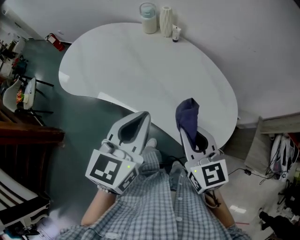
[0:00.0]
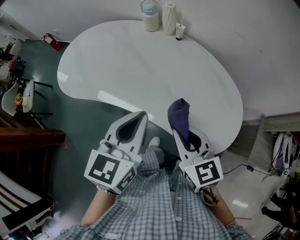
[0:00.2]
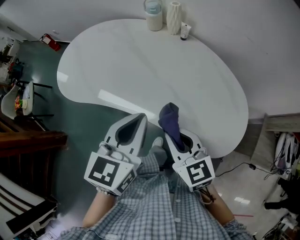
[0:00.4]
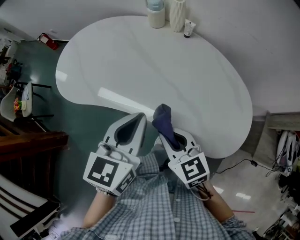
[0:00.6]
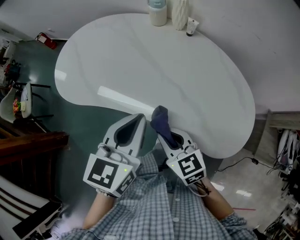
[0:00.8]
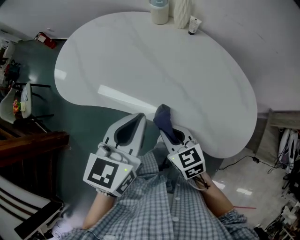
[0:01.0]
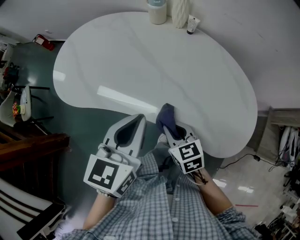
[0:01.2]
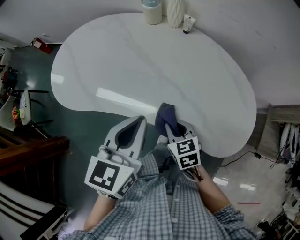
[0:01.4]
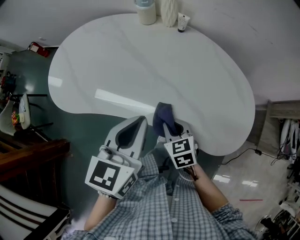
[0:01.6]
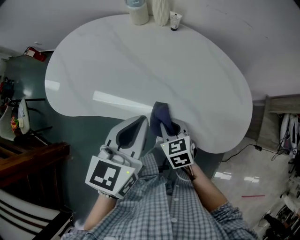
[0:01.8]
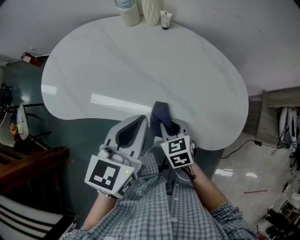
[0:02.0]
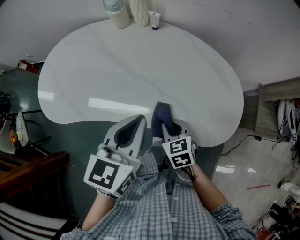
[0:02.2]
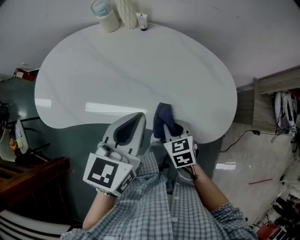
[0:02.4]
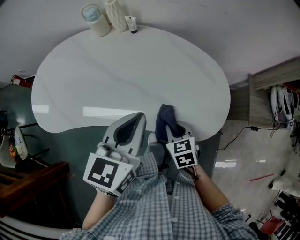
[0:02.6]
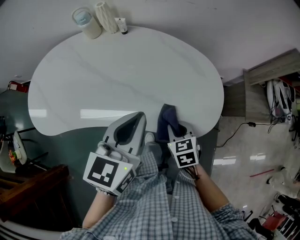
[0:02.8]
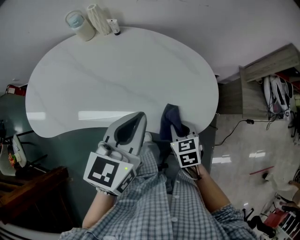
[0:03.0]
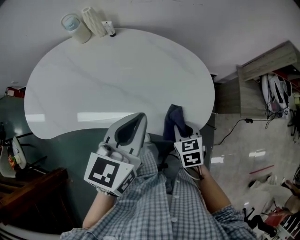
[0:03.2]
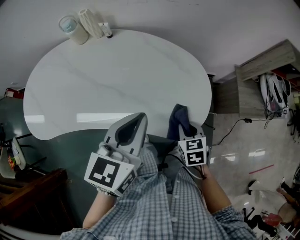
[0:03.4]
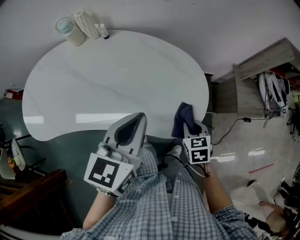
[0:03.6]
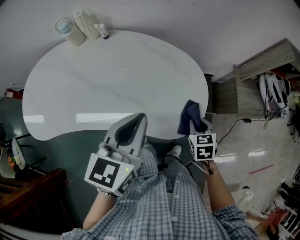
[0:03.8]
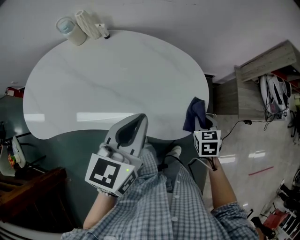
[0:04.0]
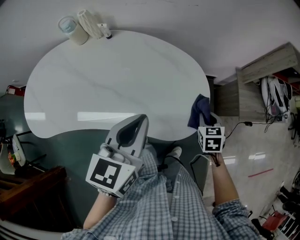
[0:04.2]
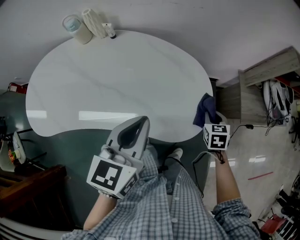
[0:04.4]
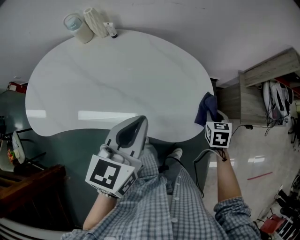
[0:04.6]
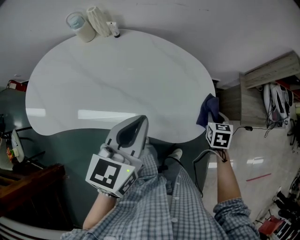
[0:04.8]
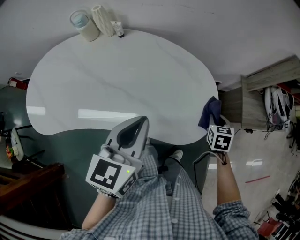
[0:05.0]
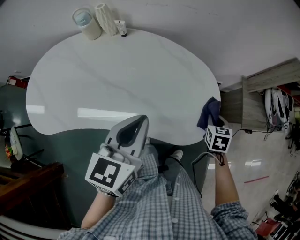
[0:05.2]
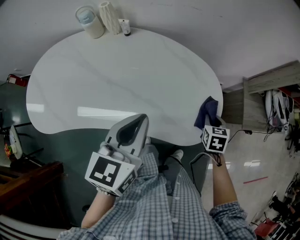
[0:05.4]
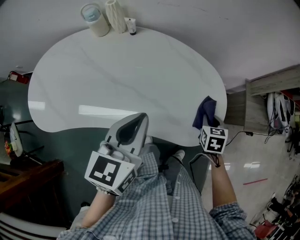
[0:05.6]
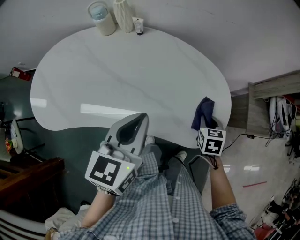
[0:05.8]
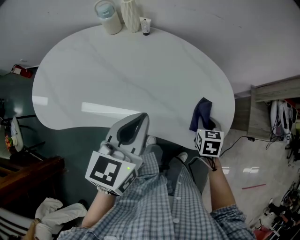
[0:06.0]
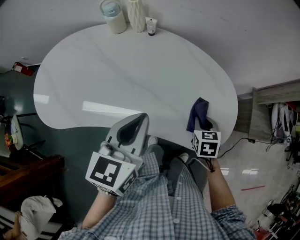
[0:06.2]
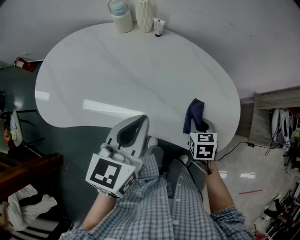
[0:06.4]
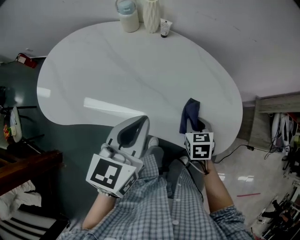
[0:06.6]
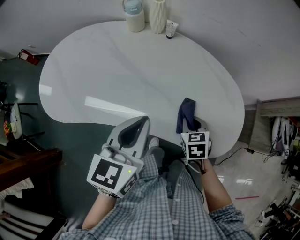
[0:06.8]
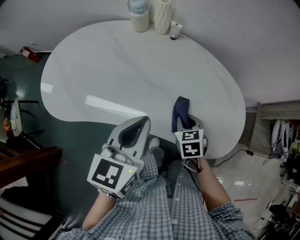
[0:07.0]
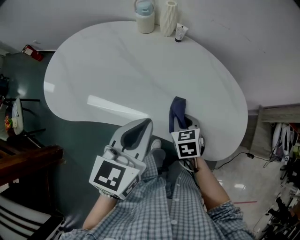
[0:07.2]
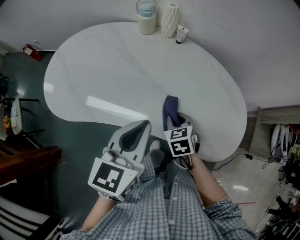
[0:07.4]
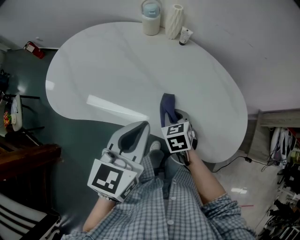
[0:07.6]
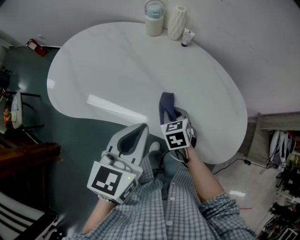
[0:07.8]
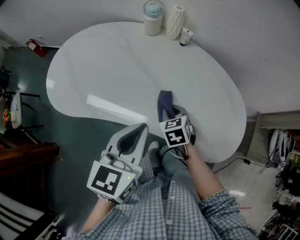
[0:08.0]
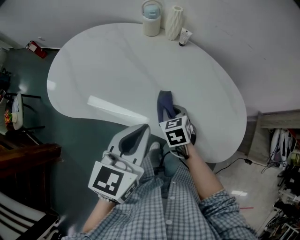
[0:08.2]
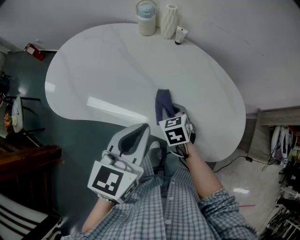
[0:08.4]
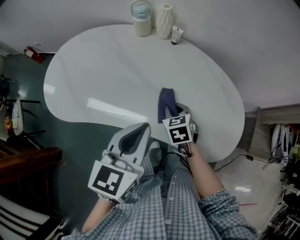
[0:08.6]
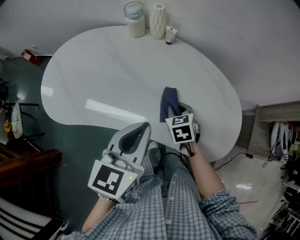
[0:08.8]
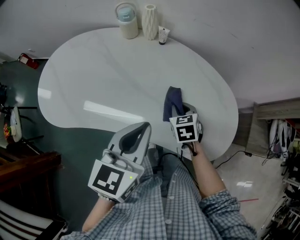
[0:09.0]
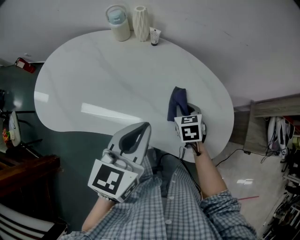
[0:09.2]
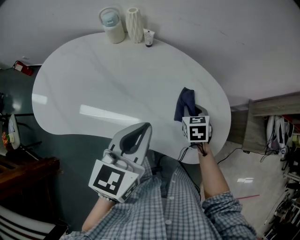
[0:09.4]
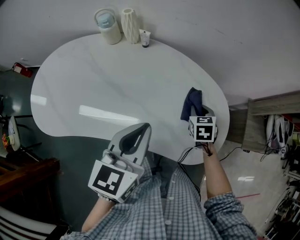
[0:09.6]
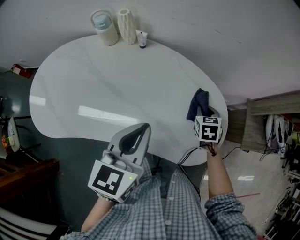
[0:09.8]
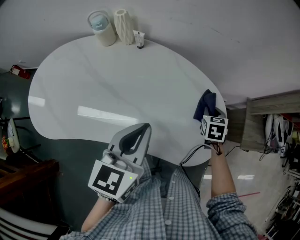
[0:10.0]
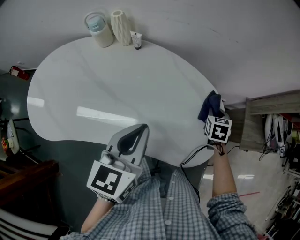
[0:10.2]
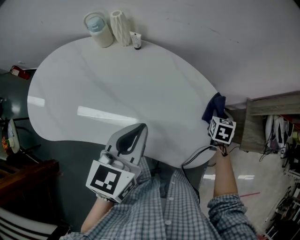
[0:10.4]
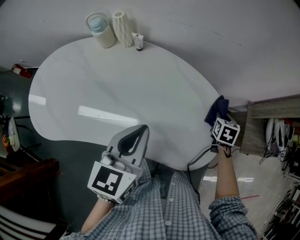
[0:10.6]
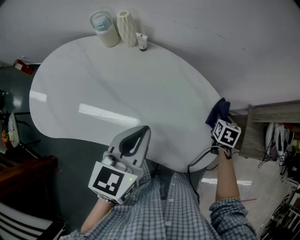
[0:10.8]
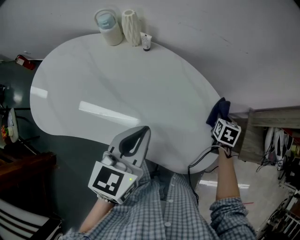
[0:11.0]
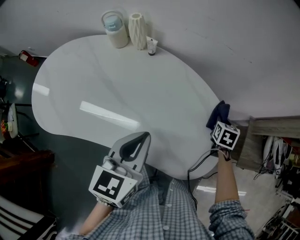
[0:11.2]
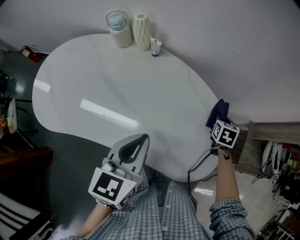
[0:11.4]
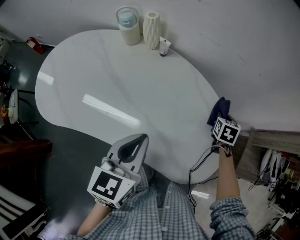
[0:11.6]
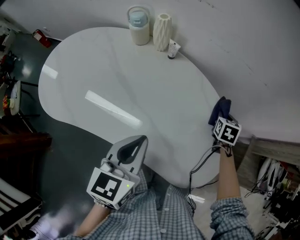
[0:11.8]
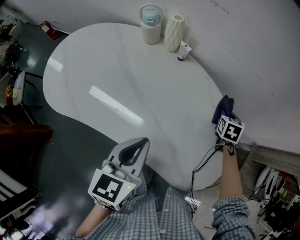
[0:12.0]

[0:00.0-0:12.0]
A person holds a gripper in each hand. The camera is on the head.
0:00.0 to 0:01.6: The left gripper travels forward, to the left and downward by roughly 15 cm. The right gripper travels downward, to the left and forward by approximately 25 cm, and swivels roughly 30 degrees.
0:01.6 to 0:03.0: Both grippers travel together to the right, approximately 20 cm. The right gripper changes its angle by some 20 degrees.
0:03.0 to 0:04.4: The right gripper heads to the right and forward, covering approximately 20 cm.
0:04.4 to 0:06.0: The two grippers go approximately 15 cm to the left.
0:06.0 to 0:07.6: The right gripper travels to the left by about 25 cm, and turns by about 30 degrees. The left gripper shifts approximately 10 cm to the left.
0:07.6 to 0:09.0: Both grippers travel together to the right, about 10 cm.
0:09.0 to 0:10.4: The left gripper moves forward and to the right, about 10 cm, while the right gripper heads to the right, covering approximately 30 cm, and rotates some 30 degrees.
0:10.4 to 0:12.0: The right gripper moves to the left and forward, some 15 cm. Meanwhile the left gripper moves some 5 cm.

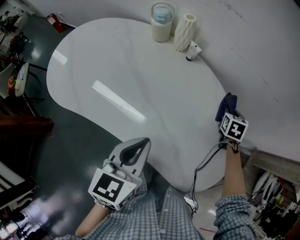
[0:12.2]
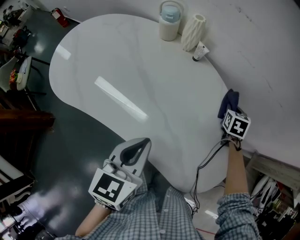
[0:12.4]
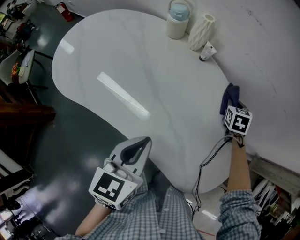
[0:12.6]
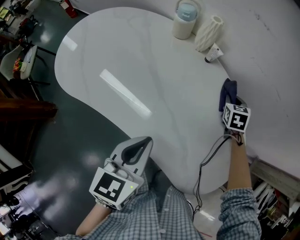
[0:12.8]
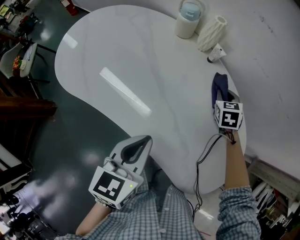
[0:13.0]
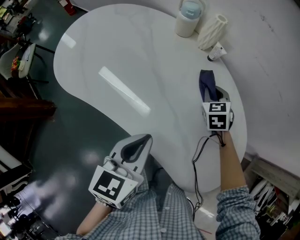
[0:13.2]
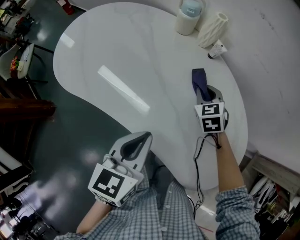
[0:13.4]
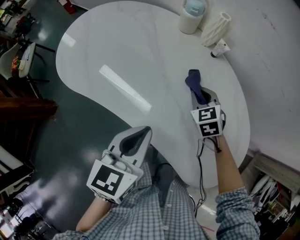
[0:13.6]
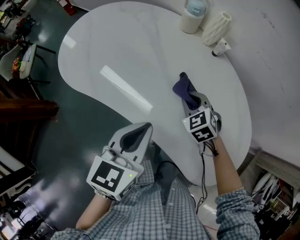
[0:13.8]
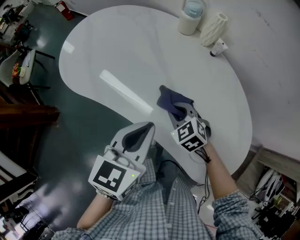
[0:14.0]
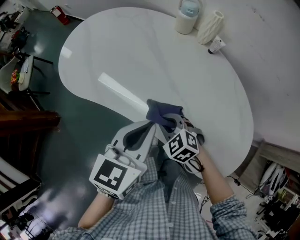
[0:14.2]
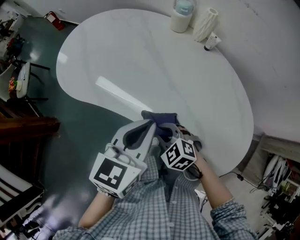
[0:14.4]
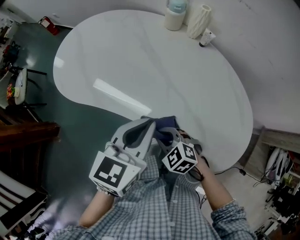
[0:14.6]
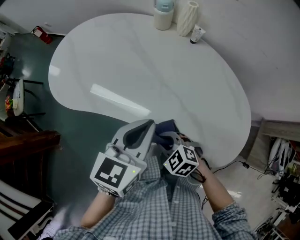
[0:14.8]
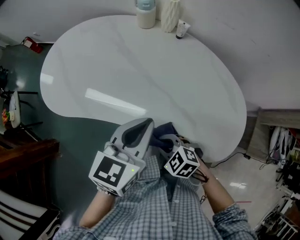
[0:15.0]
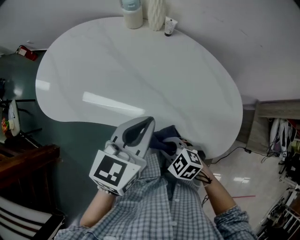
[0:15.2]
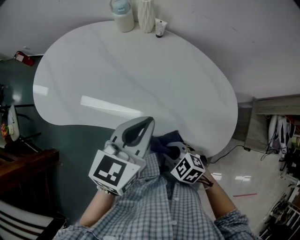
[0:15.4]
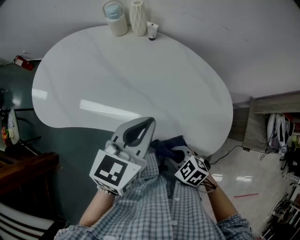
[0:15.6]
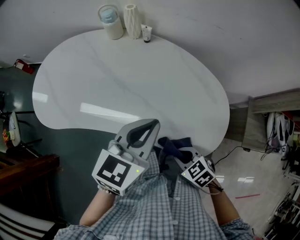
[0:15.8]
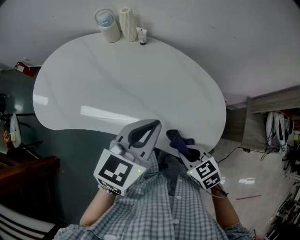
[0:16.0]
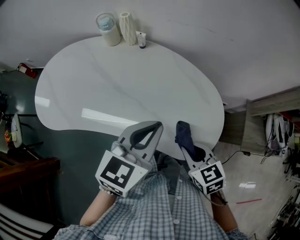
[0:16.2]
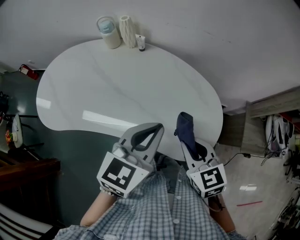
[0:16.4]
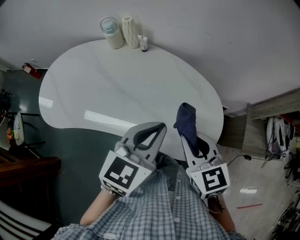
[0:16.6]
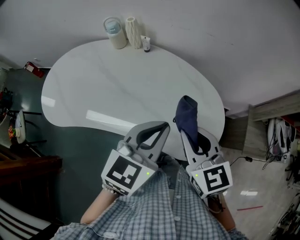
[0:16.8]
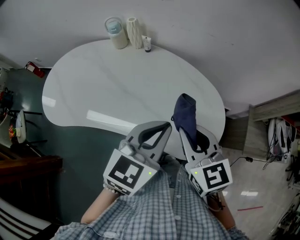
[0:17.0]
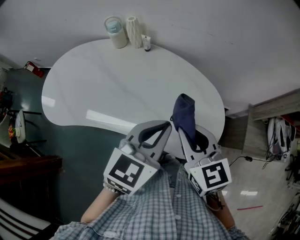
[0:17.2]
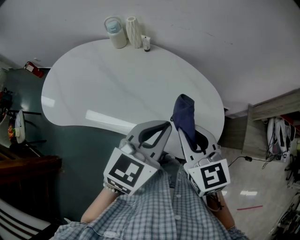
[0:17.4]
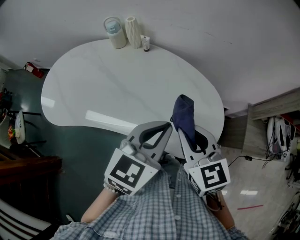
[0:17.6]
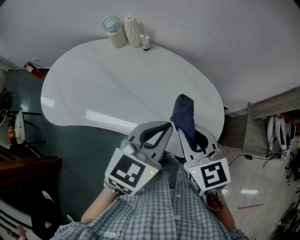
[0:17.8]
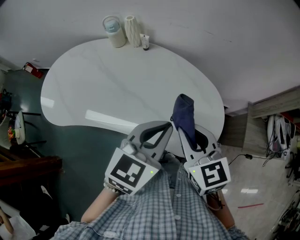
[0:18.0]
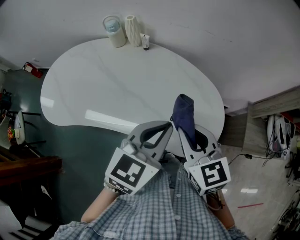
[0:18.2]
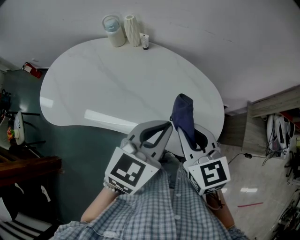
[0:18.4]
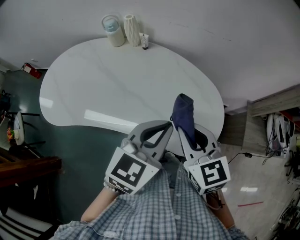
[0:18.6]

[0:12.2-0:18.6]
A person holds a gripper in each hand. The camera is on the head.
0:12.2 to 0:13.8: The right gripper ends up roughly 35 cm from where it was, and turns by approximately 60 degrees. Meanwhile the left gripper changes place by roughly 10 cm.
0:13.8 to 0:15.4: The right gripper goes some 25 cm backward, and changes its angle by some 20 degrees, while the left gripper shifts roughly 10 cm to the right, and turns by roughly 30 degrees.
0:15.4 to 0:17.0: The left gripper ends up roughly 15 cm from where it was, while the right gripper travels upward by roughly 25 cm, and points its fingers roughly 30 degrees further upward.
0:17.0 to 0:18.6: The grippers make only small movements.

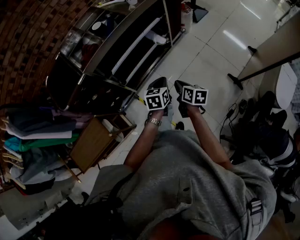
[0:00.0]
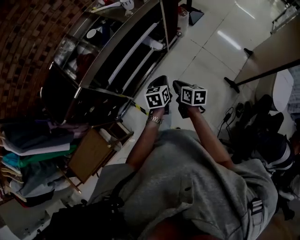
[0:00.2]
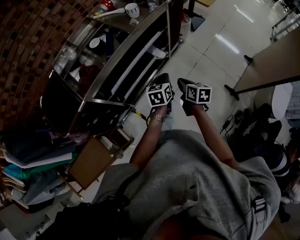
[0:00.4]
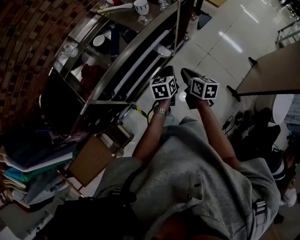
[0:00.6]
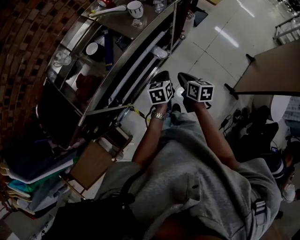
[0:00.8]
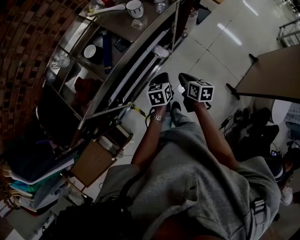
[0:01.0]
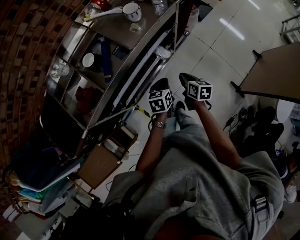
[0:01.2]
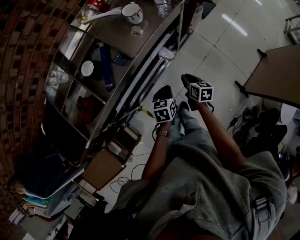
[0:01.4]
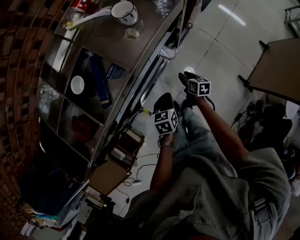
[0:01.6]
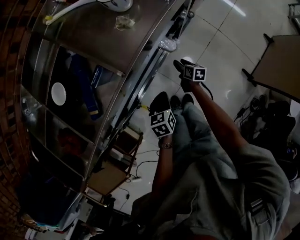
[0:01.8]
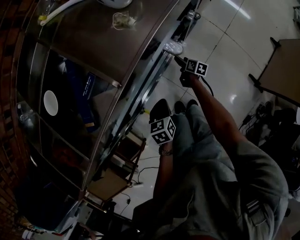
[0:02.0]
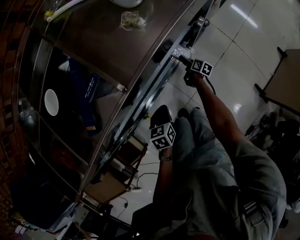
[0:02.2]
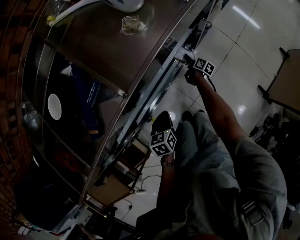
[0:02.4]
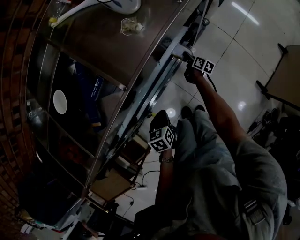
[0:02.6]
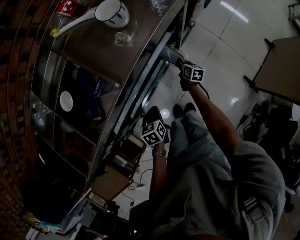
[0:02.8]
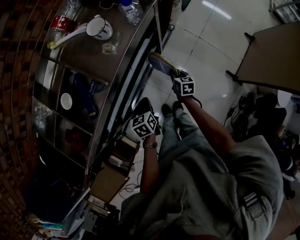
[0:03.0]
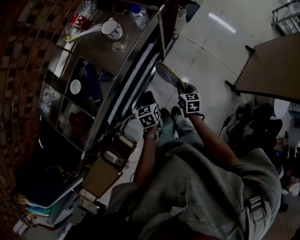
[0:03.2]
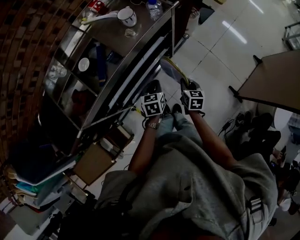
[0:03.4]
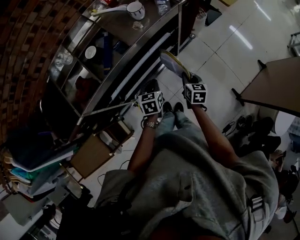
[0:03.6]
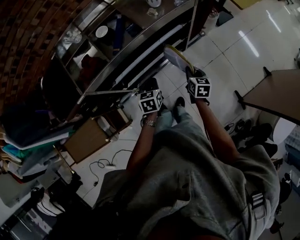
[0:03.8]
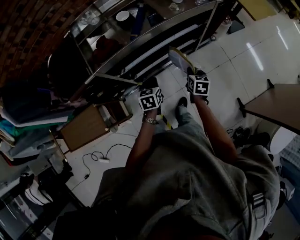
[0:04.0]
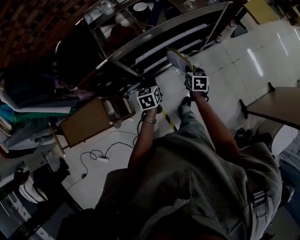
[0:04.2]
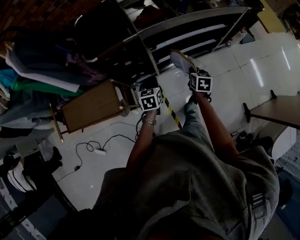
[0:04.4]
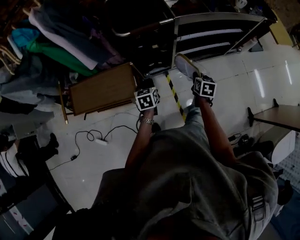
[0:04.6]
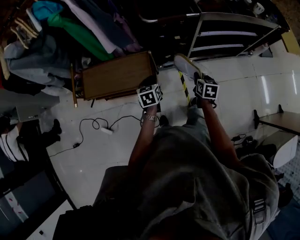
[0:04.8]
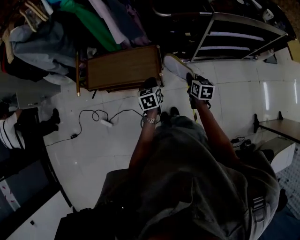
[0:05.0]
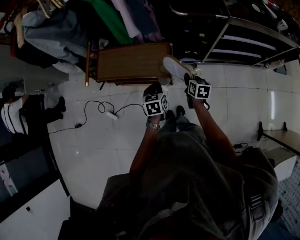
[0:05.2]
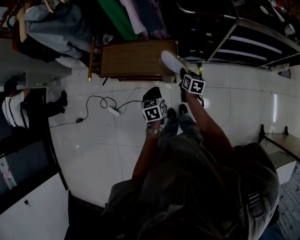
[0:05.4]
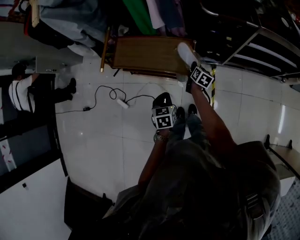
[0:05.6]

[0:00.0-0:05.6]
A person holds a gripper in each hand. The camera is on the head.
0:00.0 to 0:01.4: The grippers both shift forward by approximately 30 cm.
0:01.4 to 0:02.8: The right gripper heads downward and forward, covering roughly 30 cm, and opens and closes again, while the left gripper shifts about 15 cm downward and to the left.
0:02.8 to 0:04.2: Both grippers move upward, backward and to the left, roughly 35 cm. The right gripper turns by roughly 40 degrees, while the left gripper rotates about 20 degrees.
0:04.2 to 0:05.6: The pair of grippers is taken roughly 70 cm. The right gripper rotates approximately 20 degrees. The left gripper changes its angle by about 30 degrees.
